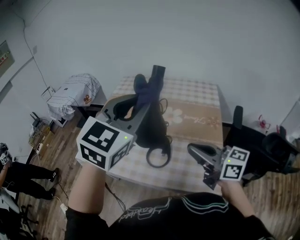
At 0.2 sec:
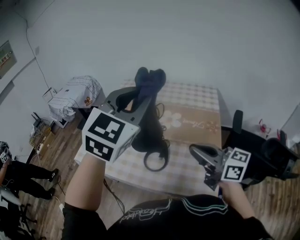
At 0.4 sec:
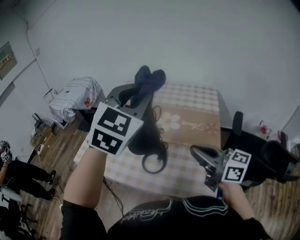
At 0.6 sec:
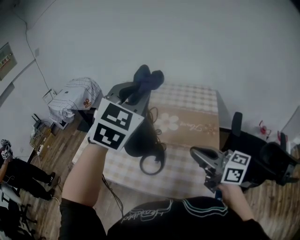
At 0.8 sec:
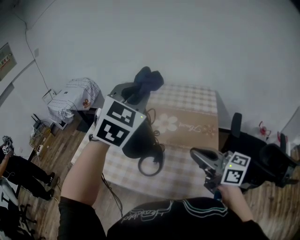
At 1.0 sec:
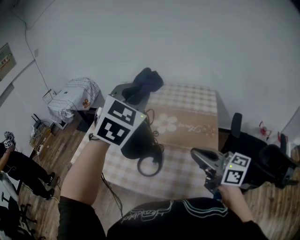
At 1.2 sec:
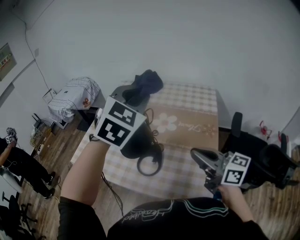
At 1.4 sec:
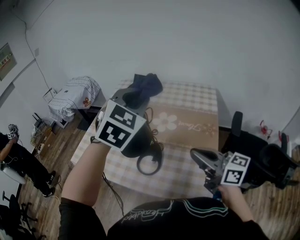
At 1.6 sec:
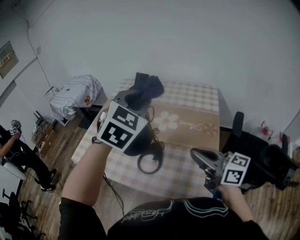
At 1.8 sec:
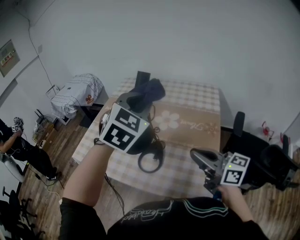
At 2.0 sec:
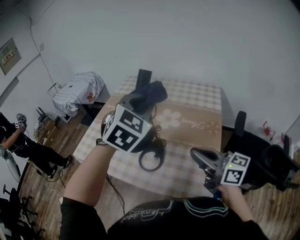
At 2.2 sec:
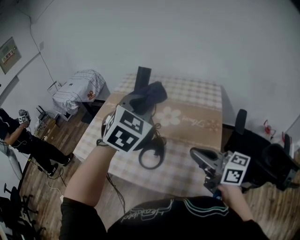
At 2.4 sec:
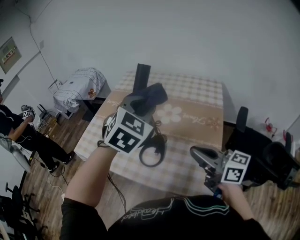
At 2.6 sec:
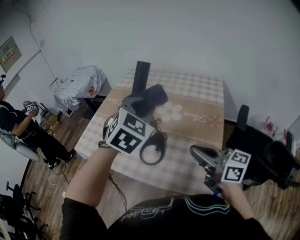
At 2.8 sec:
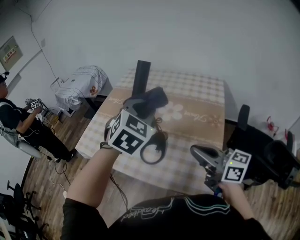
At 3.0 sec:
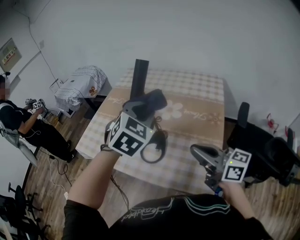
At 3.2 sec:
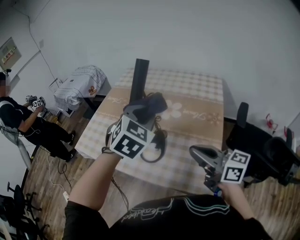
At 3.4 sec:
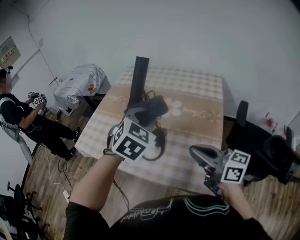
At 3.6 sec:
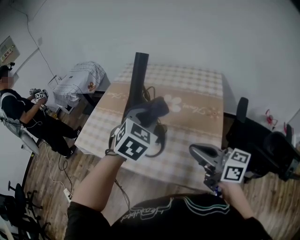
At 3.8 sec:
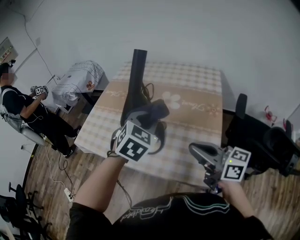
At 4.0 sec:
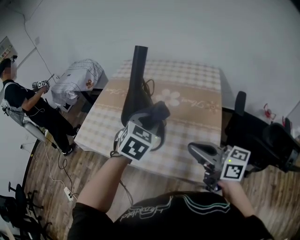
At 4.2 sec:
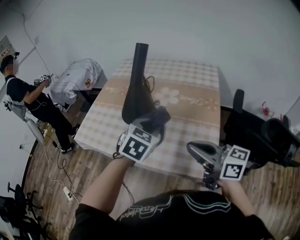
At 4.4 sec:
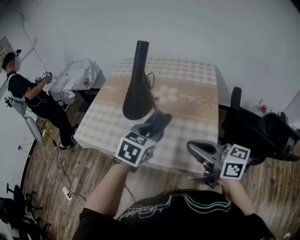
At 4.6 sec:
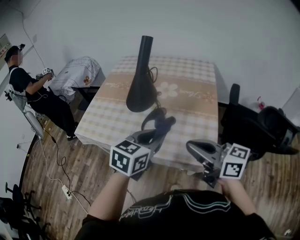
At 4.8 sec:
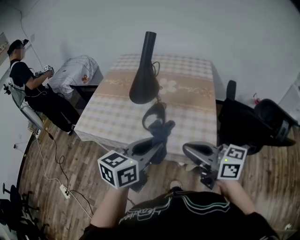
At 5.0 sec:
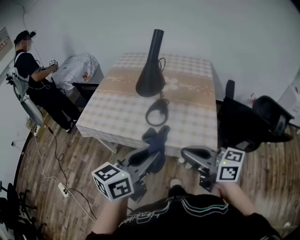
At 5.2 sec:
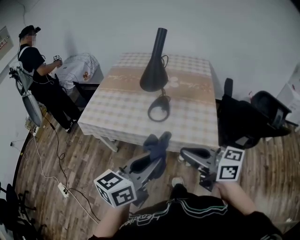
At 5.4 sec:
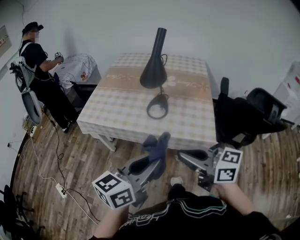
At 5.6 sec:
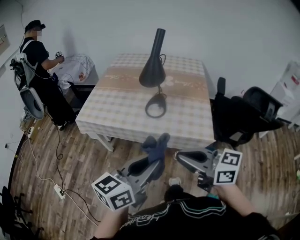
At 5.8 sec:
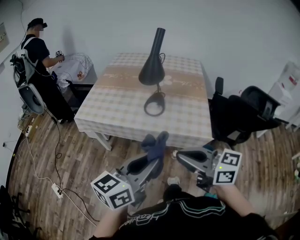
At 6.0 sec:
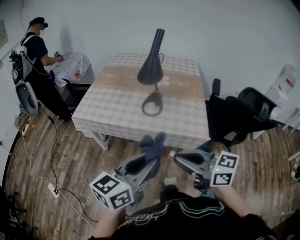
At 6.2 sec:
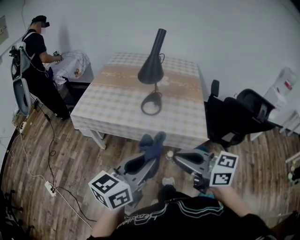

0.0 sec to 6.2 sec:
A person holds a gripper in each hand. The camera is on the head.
0.0 sec to 1.6 sec: The left gripper is displaced to the right and forward by about 10 cm, and swivels approximately 20 degrees; the right gripper moves to the right, approximately 10 cm.
1.6 sec to 3.2 sec: The left gripper shifts some 10 cm downward.
3.2 sec to 4.6 sec: The left gripper travels backward and downward by about 20 cm, and turns by some 40 degrees. Meanwhile the right gripper moves backward and to the left, roughly 15 cm.
4.6 sec to 6.2 sec: Both grippers travel together backward and to the left, roughly 30 cm. The left gripper swivels some 30 degrees.

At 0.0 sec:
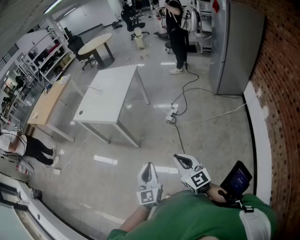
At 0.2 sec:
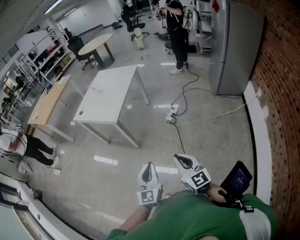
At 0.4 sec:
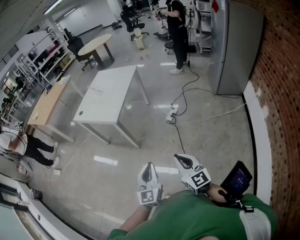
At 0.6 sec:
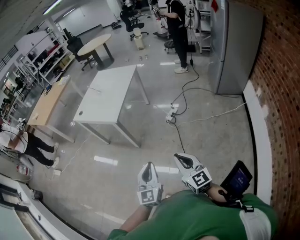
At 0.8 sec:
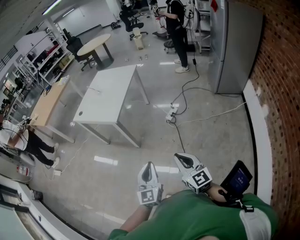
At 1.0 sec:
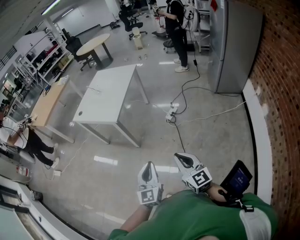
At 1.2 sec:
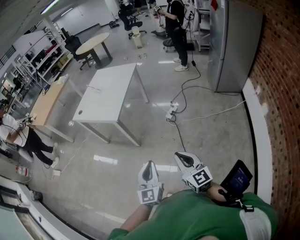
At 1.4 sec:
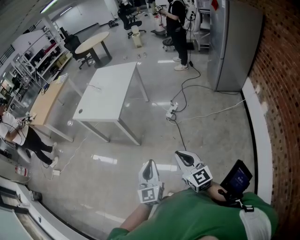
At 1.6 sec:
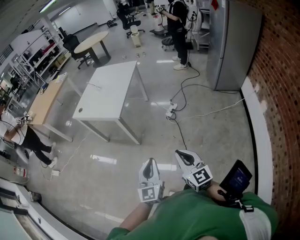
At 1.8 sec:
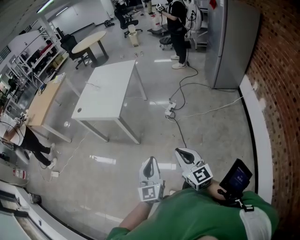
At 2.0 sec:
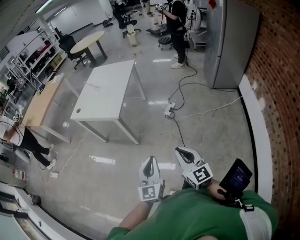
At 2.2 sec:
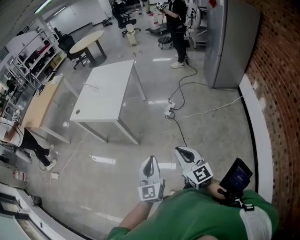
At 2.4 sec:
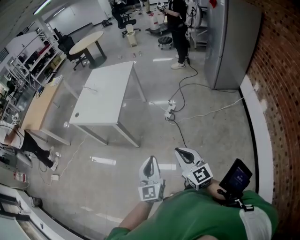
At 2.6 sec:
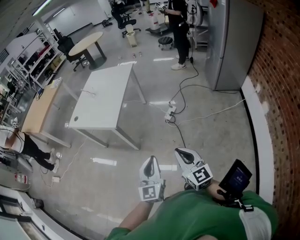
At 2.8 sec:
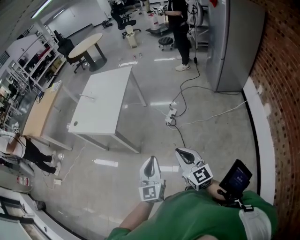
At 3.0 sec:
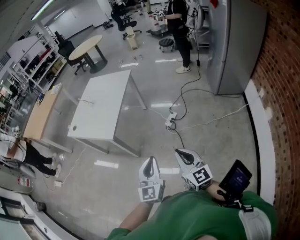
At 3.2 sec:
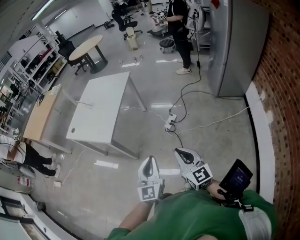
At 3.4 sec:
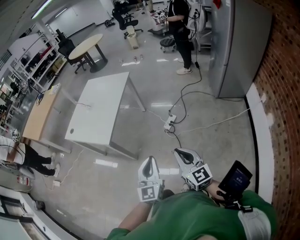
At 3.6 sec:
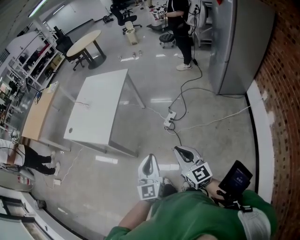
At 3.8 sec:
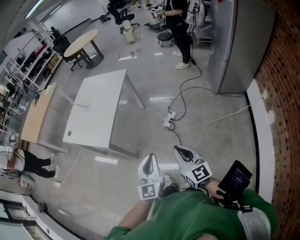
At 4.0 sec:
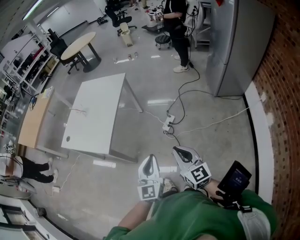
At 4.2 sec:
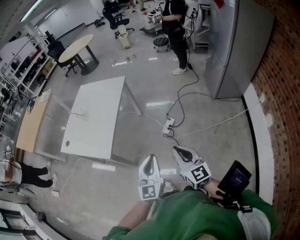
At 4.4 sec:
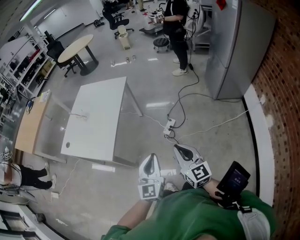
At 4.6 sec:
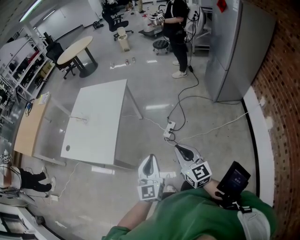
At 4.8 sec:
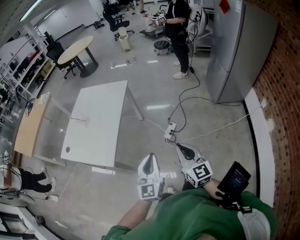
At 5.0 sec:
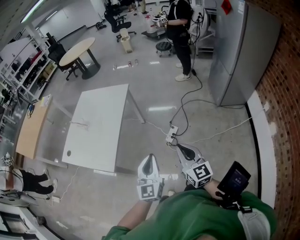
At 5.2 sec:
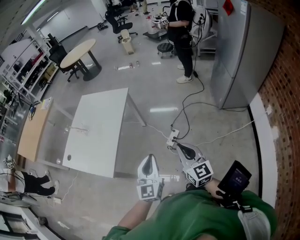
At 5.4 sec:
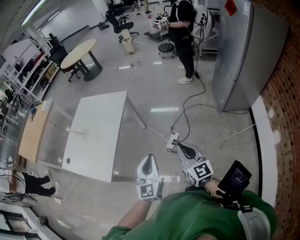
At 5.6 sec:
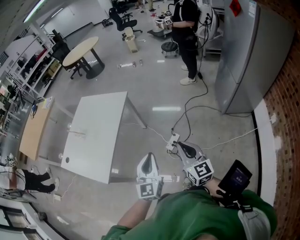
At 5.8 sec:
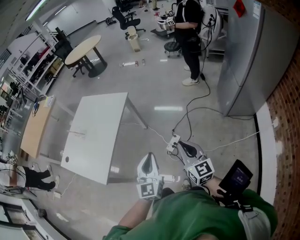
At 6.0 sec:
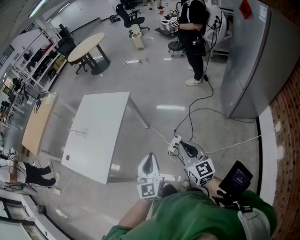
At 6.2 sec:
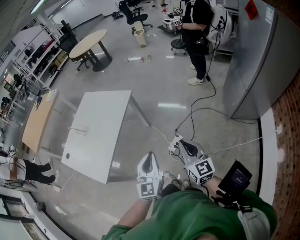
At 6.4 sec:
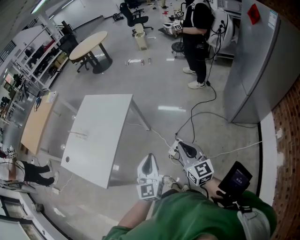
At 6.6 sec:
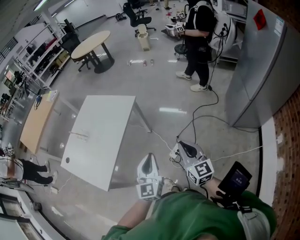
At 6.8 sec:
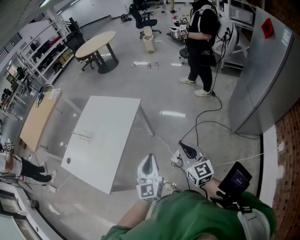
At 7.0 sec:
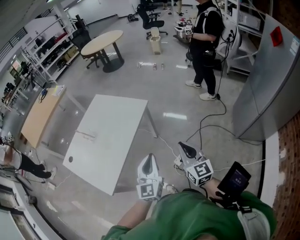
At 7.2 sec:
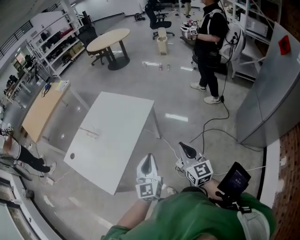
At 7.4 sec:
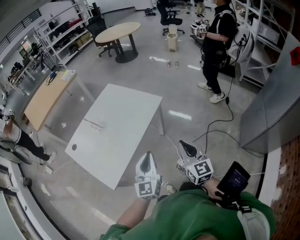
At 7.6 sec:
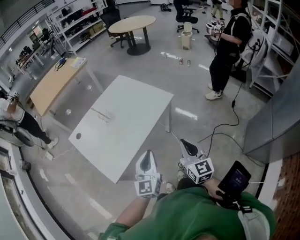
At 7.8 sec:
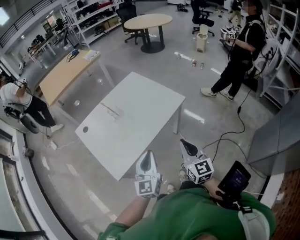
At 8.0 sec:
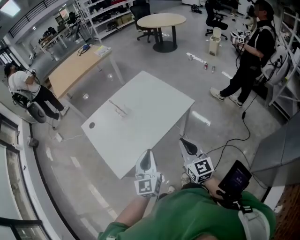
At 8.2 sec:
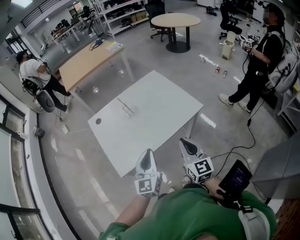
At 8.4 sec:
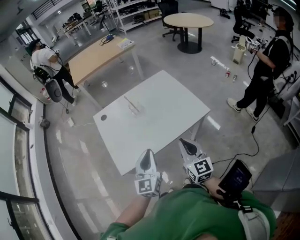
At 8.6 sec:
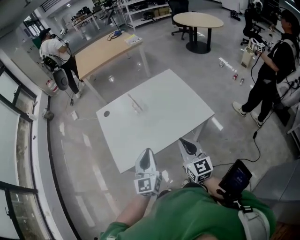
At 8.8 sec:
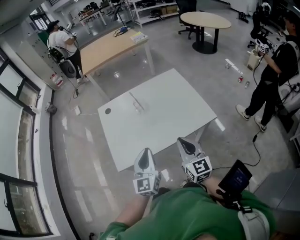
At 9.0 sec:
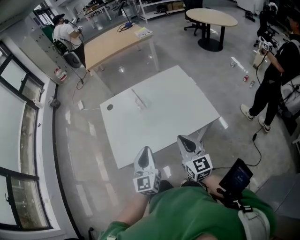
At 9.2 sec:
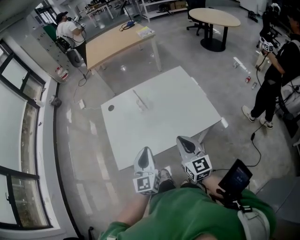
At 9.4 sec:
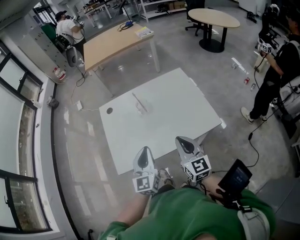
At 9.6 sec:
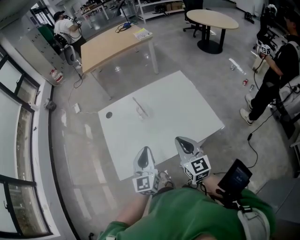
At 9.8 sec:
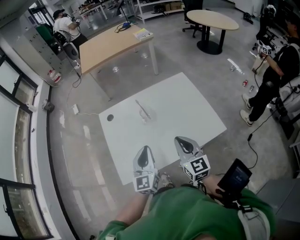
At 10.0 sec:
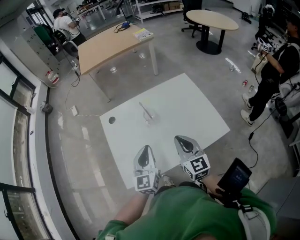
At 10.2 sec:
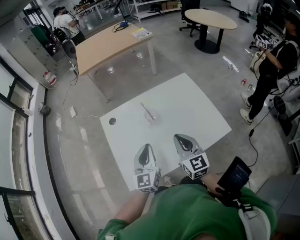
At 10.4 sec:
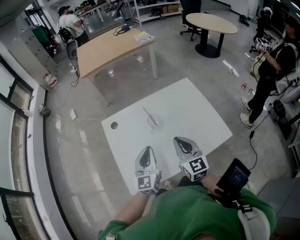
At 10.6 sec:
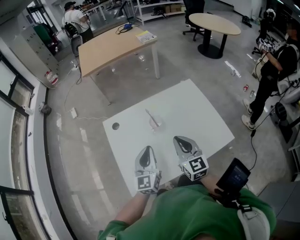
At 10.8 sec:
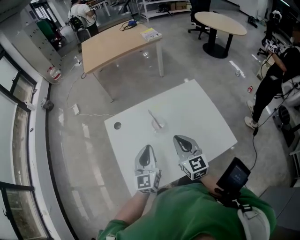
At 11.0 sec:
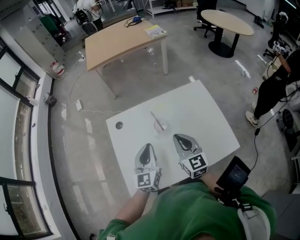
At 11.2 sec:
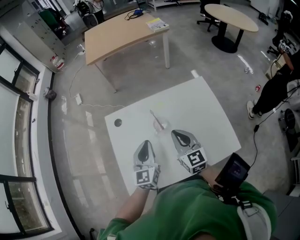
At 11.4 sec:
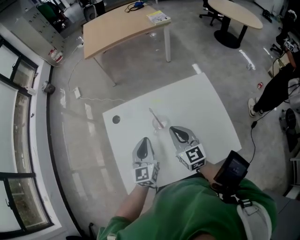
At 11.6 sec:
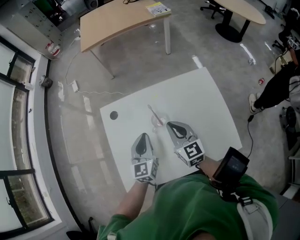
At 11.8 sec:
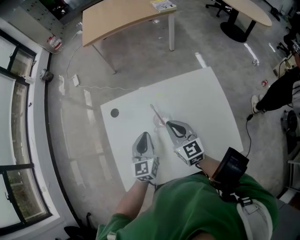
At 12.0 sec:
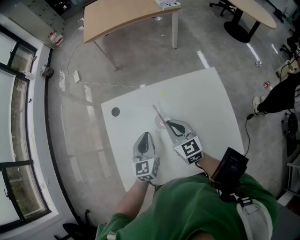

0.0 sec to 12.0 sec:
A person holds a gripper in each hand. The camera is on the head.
0.0 sec to 1.6 sec: There are only small adjustments of the grippers.
1.6 sec to 3.0 sec: The grippers both shift forward and to the right by roughly 20 cm.
3.0 sec to 4.4 sec: Both grippers move forward, approximately 20 cm.
4.4 sec to 6.0 sec: Both grippers move forward and to the right, approximately 25 cm.
6.0 sec to 7.6 sec: The right gripper shifts about 25 cm forward and to the left, while the left gripper travels to the left and forward by about 20 cm, and rotates approximately 20 degrees.
7.6 sec to 9.0 sec: The right gripper moves some 20 cm, and rotates roughly 40 degrees; the left gripper ends up about 10 cm from where it was, and changes its angle by about 40 degrees.
9.0 sec to 10.4 sec: The right gripper heads forward and to the left, covering approximately 20 cm; the left gripper travels forward by some 15 cm.
10.4 sec to 12.0 sec: The two grippers go about 20 cm forward and downward. The right gripper rotates about 20 degrees.

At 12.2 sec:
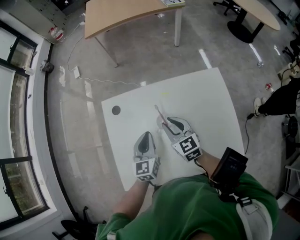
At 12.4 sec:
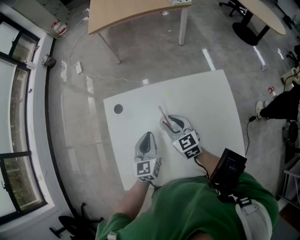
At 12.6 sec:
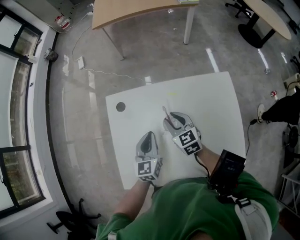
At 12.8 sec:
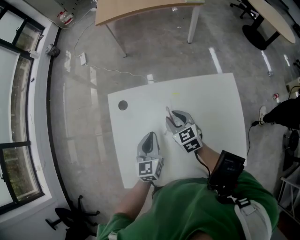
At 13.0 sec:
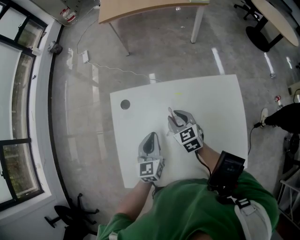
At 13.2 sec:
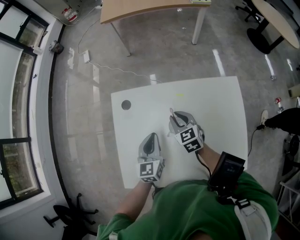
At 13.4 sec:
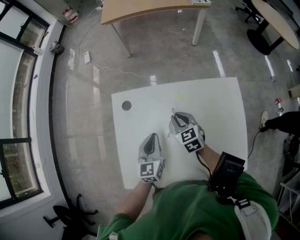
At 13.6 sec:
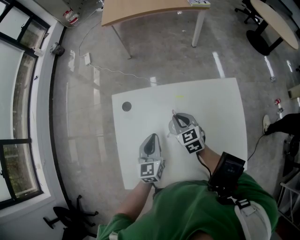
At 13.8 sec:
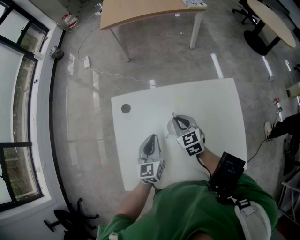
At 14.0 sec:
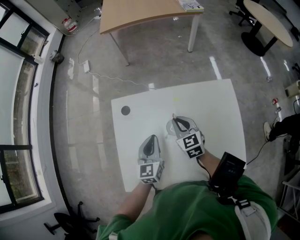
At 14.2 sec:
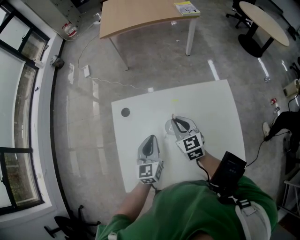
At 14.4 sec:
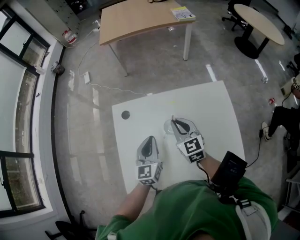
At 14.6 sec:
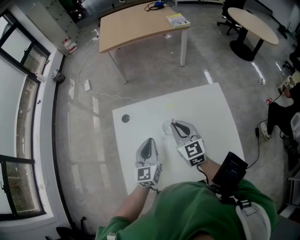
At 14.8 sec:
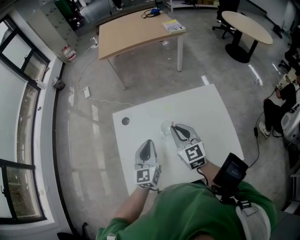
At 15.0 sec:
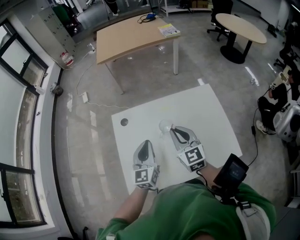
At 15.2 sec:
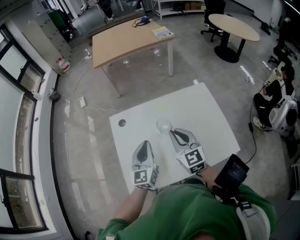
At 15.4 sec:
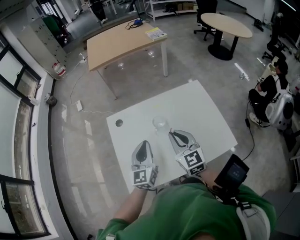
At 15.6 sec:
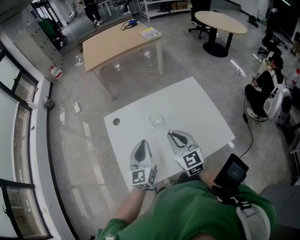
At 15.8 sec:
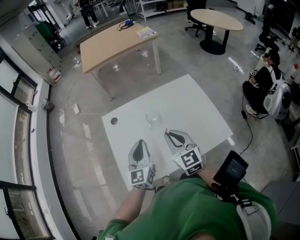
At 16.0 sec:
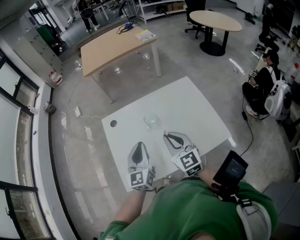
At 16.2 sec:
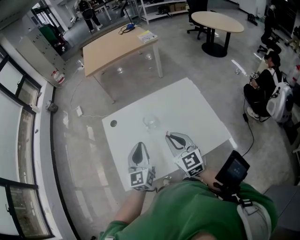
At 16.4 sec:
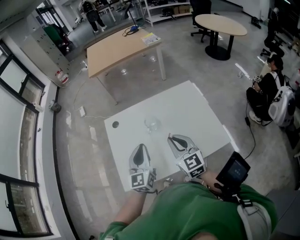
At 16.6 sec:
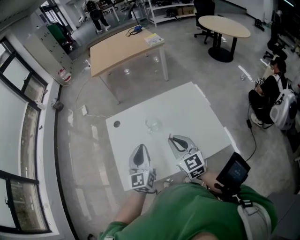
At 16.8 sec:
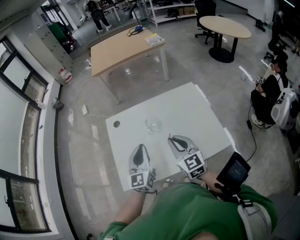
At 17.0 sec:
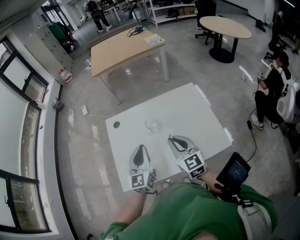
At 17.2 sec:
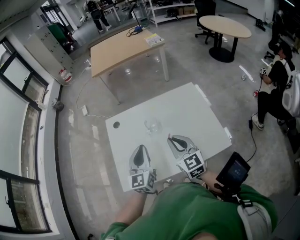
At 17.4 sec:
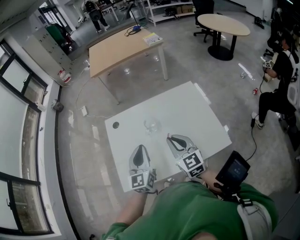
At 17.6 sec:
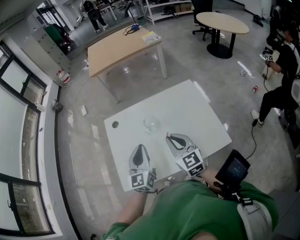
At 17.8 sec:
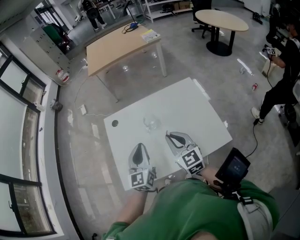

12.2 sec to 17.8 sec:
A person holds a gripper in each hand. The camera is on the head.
12.2 sec to 13.6 sec: The right gripper is displaced forward and downward by roughly 10 cm.
13.6 sec to 15.0 sec: The right gripper moves upward and backward, about 20 cm, and turns by roughly 30 degrees, while the left gripper is displaced upward and backward by some 15 cm.
15.0 sec to 16.4 sec: Both grippers travel together backward, some 10 cm.
16.4 sec to 17.8 sec: The grippers move only a little.
